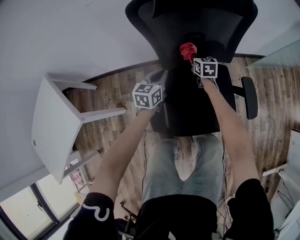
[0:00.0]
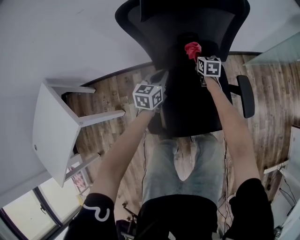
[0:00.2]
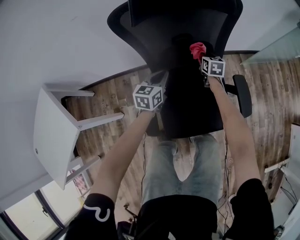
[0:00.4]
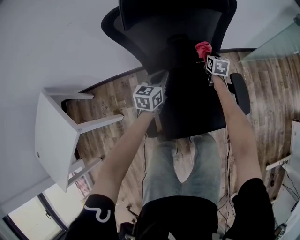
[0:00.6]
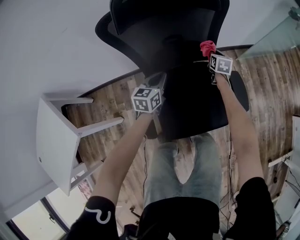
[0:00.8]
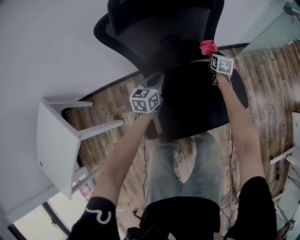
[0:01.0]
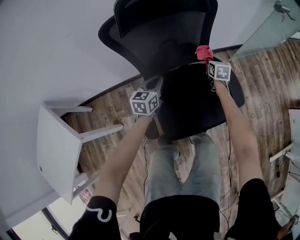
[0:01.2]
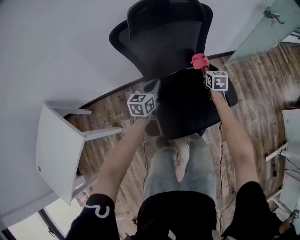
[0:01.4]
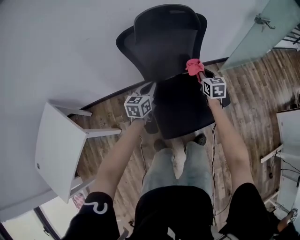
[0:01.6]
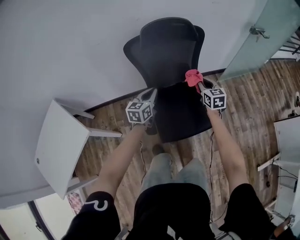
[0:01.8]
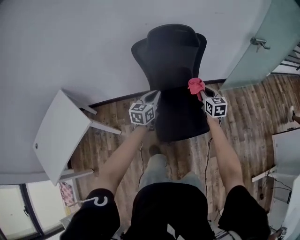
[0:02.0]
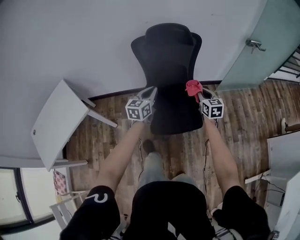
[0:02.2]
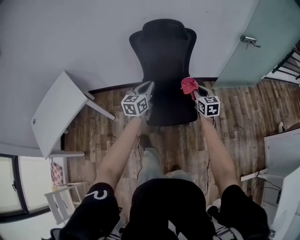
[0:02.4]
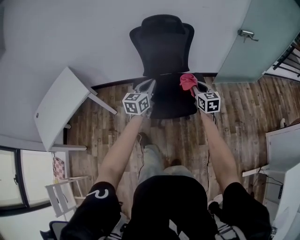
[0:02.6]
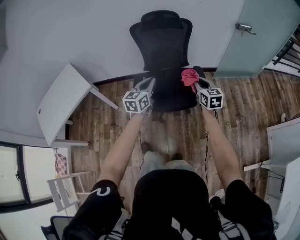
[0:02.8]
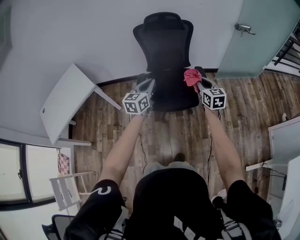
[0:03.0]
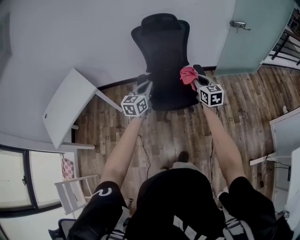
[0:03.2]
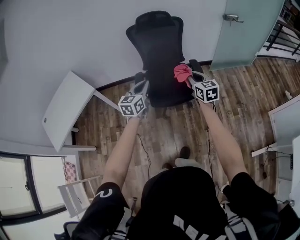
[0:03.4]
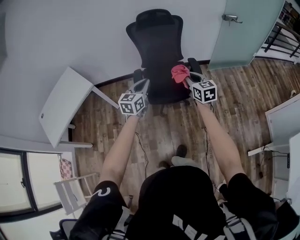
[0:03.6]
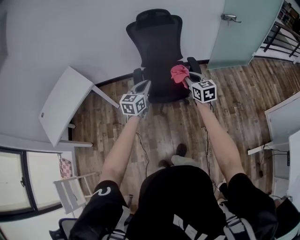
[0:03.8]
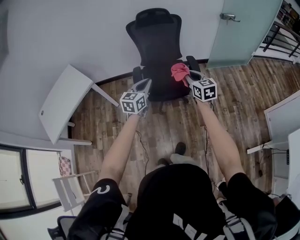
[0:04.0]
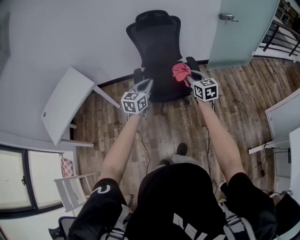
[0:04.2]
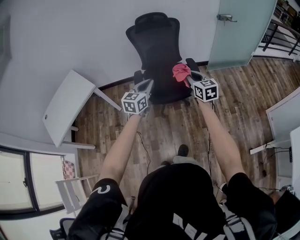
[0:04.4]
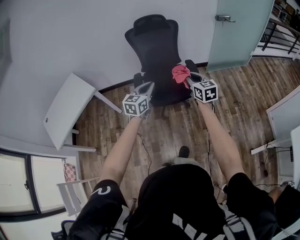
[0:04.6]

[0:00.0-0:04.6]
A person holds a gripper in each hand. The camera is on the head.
0:00.0 to 0:01.6: The right gripper goes approximately 30 cm upward, to the right and backward; the left gripper shifts approximately 15 cm upward and backward.
0:01.6 to 0:03.0: The grippers both shift backward and upward by approximately 40 cm. The right gripper changes its angle by about 20 degrees.
0:03.0 to 0:04.6: Both grippers travel together backward, about 10 cm.

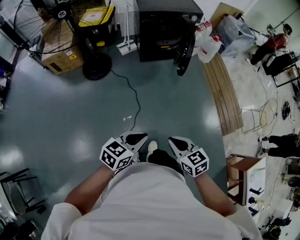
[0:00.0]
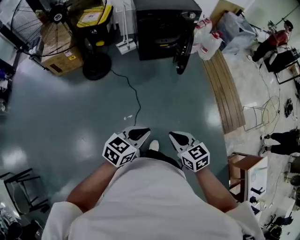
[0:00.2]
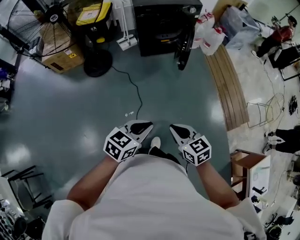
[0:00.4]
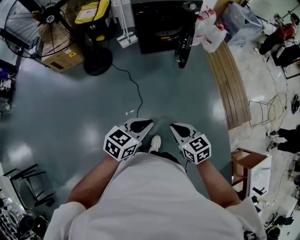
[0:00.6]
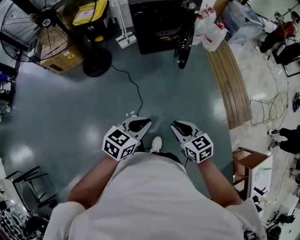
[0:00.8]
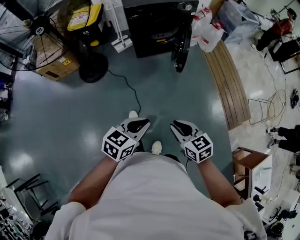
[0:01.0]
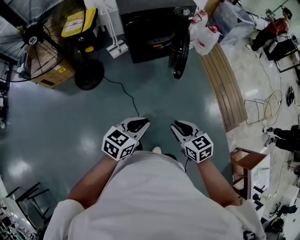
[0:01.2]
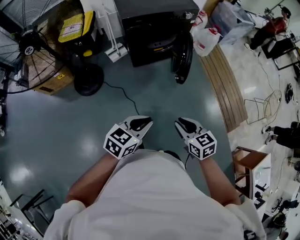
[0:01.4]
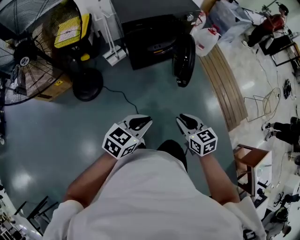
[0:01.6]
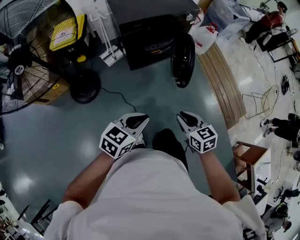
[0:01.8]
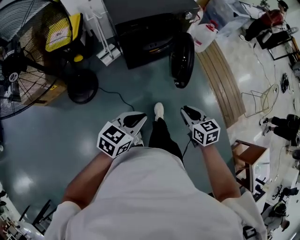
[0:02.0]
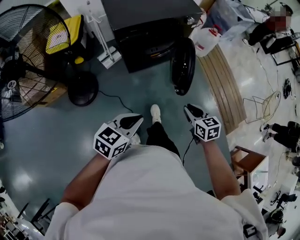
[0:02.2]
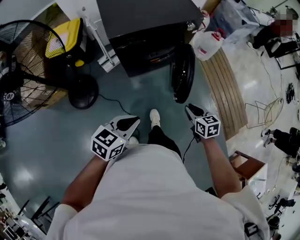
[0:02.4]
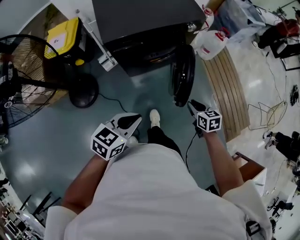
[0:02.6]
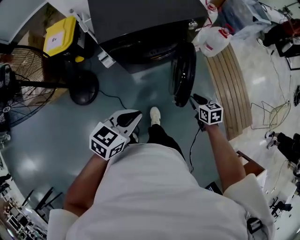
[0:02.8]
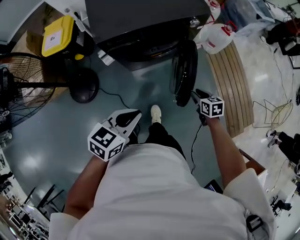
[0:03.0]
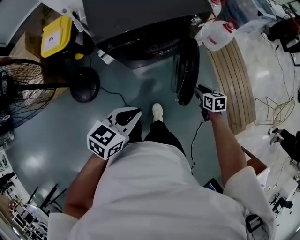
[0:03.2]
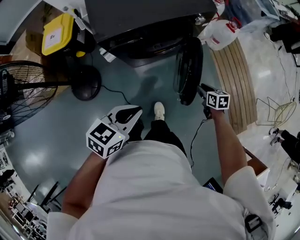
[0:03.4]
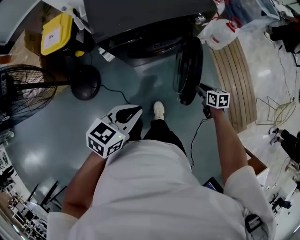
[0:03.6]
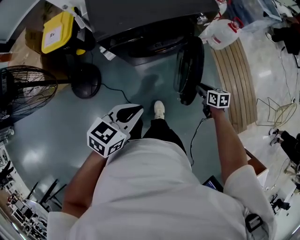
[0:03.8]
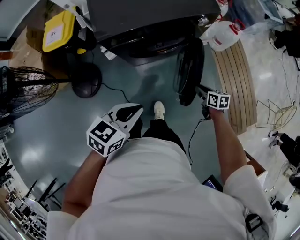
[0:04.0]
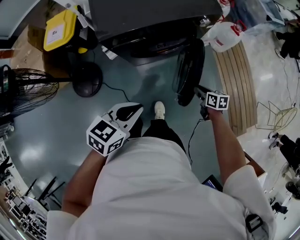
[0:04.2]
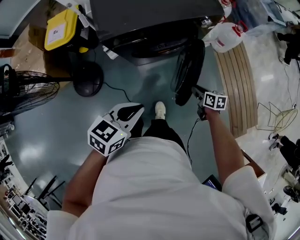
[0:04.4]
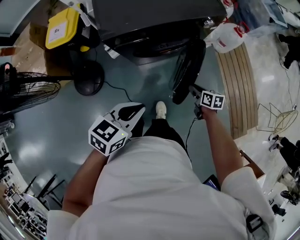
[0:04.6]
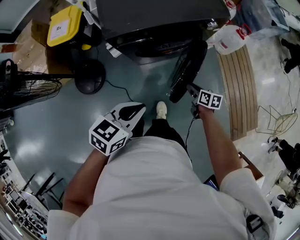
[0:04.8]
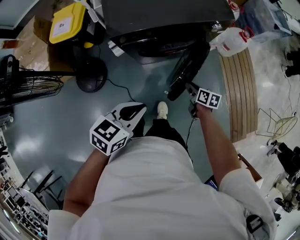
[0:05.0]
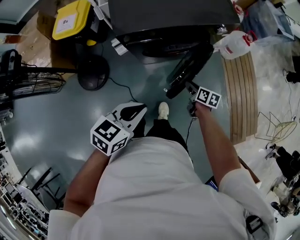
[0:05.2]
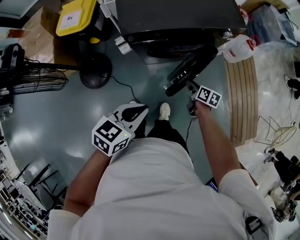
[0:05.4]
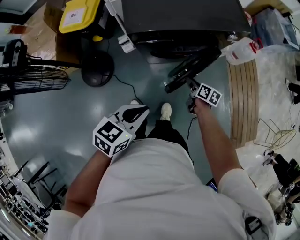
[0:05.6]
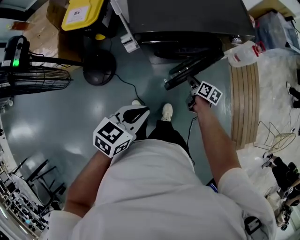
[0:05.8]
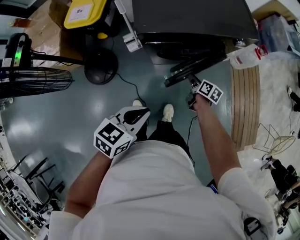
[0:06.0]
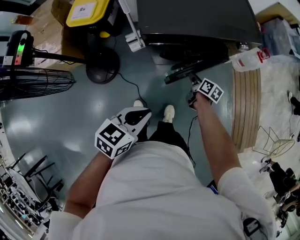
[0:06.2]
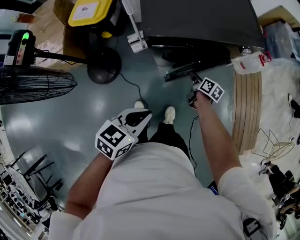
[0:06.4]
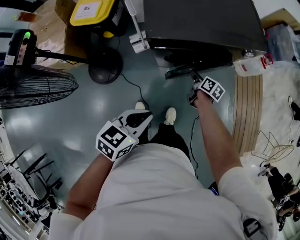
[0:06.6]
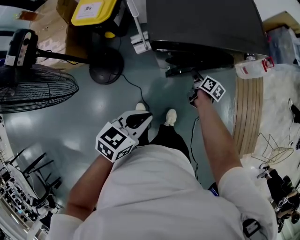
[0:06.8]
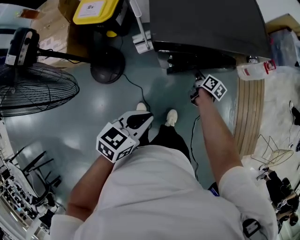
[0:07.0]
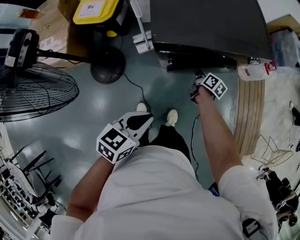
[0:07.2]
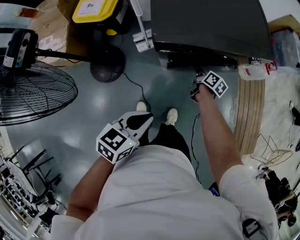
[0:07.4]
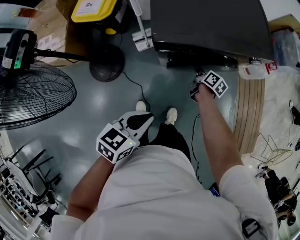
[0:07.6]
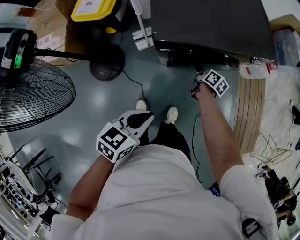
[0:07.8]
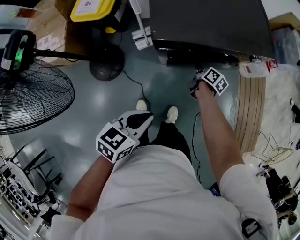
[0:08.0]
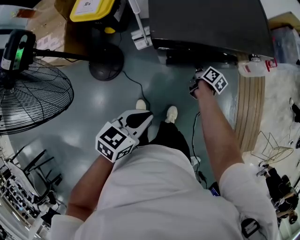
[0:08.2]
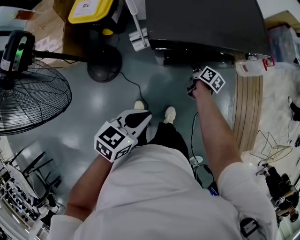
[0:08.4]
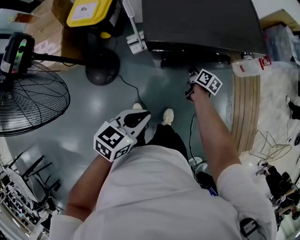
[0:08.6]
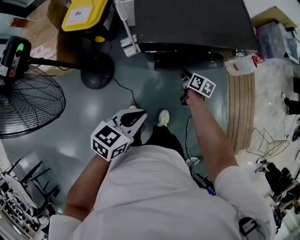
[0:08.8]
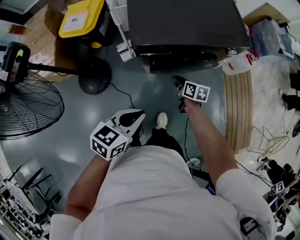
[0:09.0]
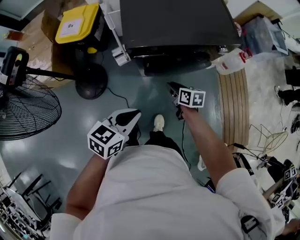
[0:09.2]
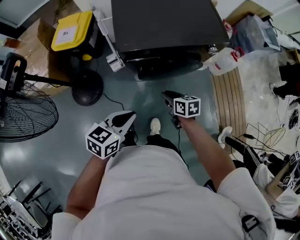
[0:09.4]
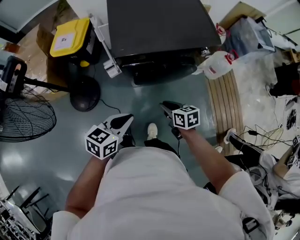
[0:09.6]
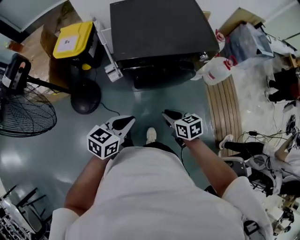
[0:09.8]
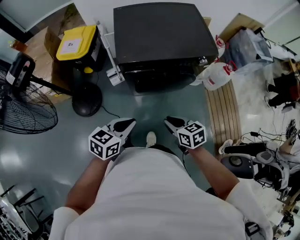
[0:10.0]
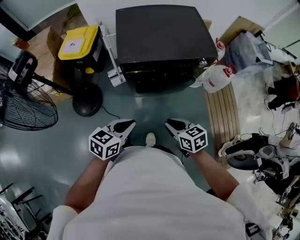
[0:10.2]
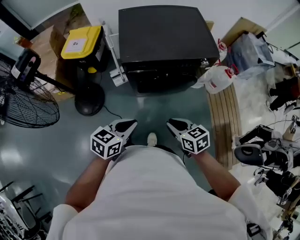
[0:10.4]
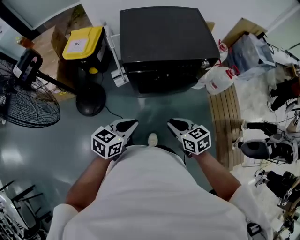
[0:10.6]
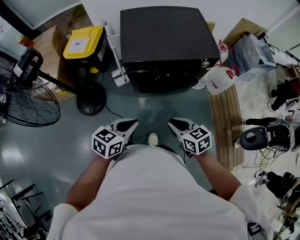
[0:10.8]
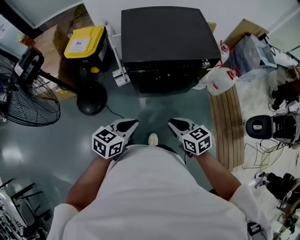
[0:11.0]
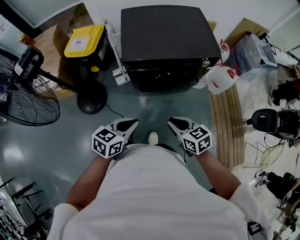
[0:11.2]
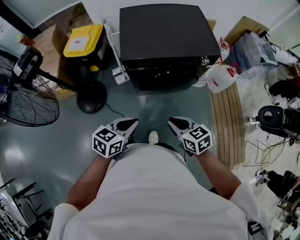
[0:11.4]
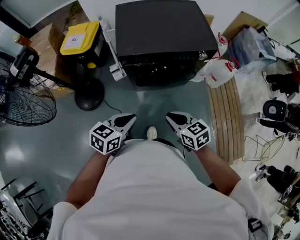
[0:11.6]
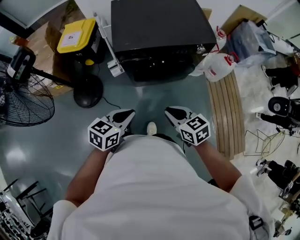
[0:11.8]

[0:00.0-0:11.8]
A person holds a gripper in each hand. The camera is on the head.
0:00.0 to 0:01.4: The grippers both shift forward by some 30 cm.
0:01.4 to 0:03.0: The left gripper goes about 35 cm forward. The right gripper heads forward and downward, covering roughly 50 cm, and changes its angle by some 20 degrees.
0:03.0 to 0:04.4: The right gripper moves approximately 5 cm.
0:04.4 to 0:06.0: The right gripper heads to the left and forward, covering about 20 cm. The left gripper heads to the left, covering roughly 10 cm.
0:06.0 to 0:07.4: The left gripper changes place by some 5 cm. The right gripper shifts roughly 15 cm forward and to the left.
0:07.4 to 0:08.8: The grippers make only small movements.
0:08.8 to 0:10.4: The right gripper shifts some 30 cm backward and upward, and turns by roughly 40 degrees, while the left gripper moves approximately 5 cm.
0:10.4 to 0:11.8: The grippers make only small movements.

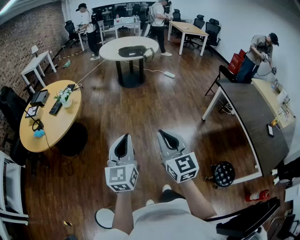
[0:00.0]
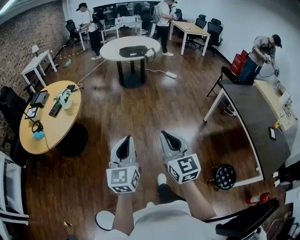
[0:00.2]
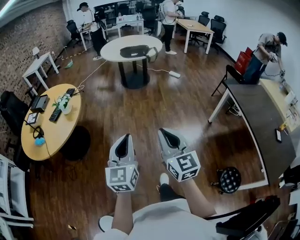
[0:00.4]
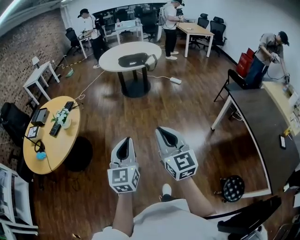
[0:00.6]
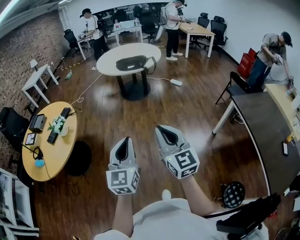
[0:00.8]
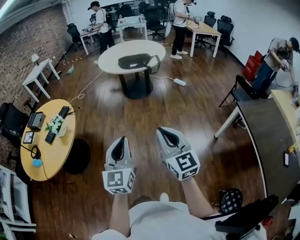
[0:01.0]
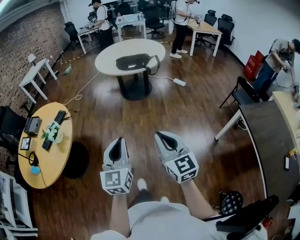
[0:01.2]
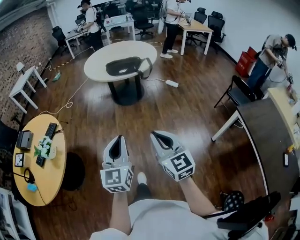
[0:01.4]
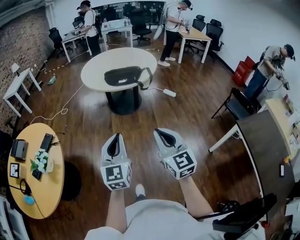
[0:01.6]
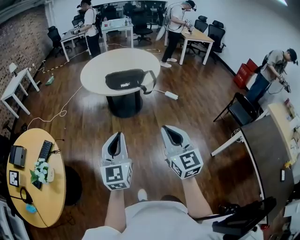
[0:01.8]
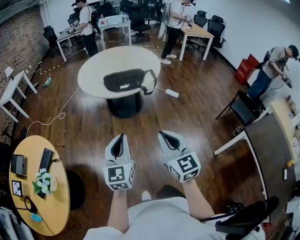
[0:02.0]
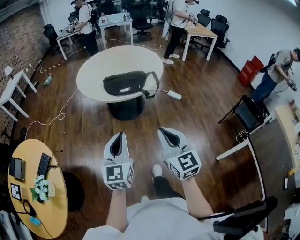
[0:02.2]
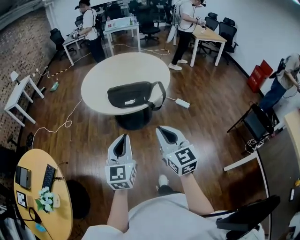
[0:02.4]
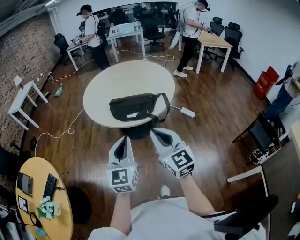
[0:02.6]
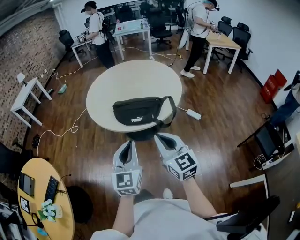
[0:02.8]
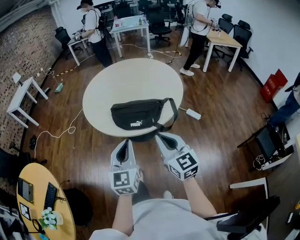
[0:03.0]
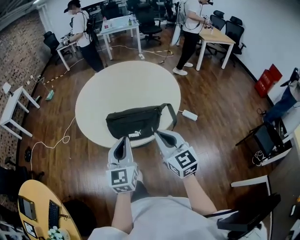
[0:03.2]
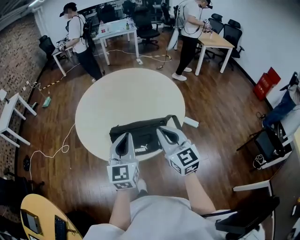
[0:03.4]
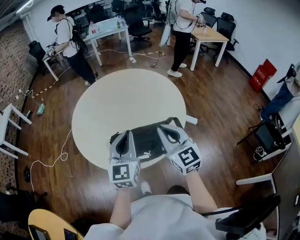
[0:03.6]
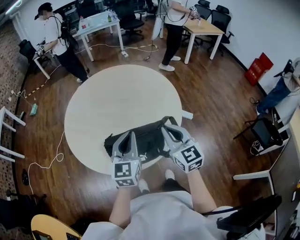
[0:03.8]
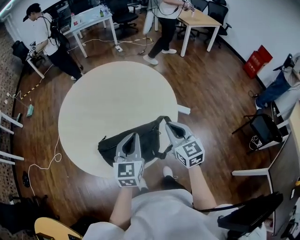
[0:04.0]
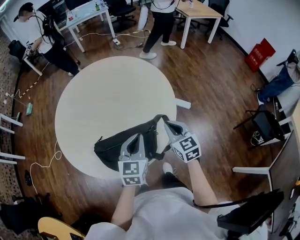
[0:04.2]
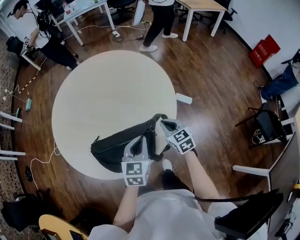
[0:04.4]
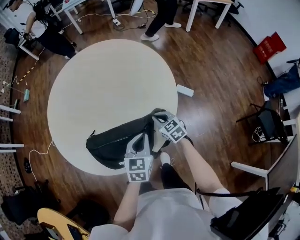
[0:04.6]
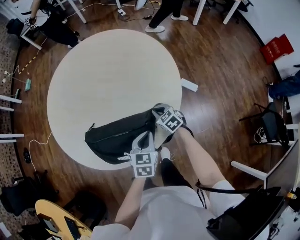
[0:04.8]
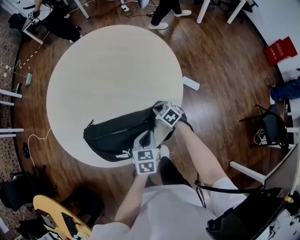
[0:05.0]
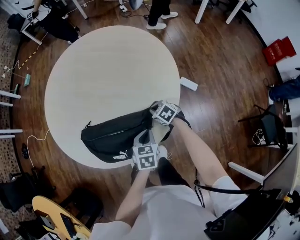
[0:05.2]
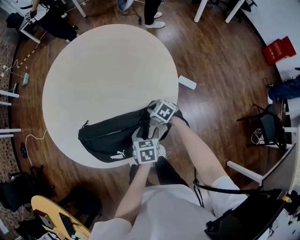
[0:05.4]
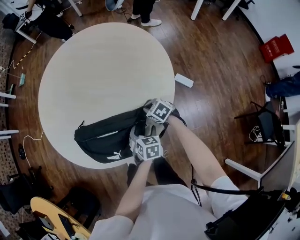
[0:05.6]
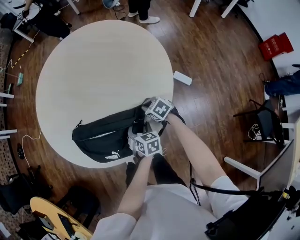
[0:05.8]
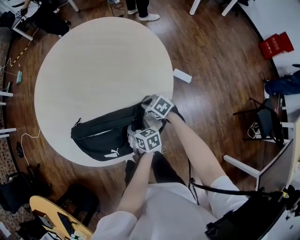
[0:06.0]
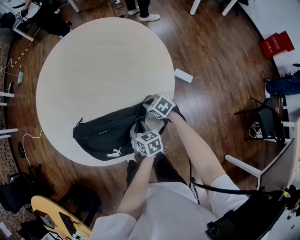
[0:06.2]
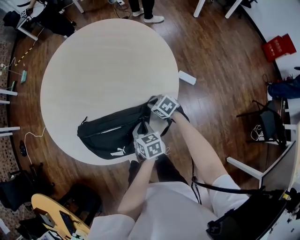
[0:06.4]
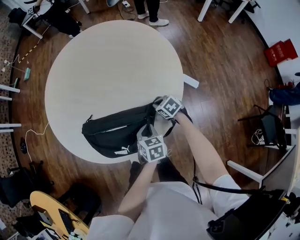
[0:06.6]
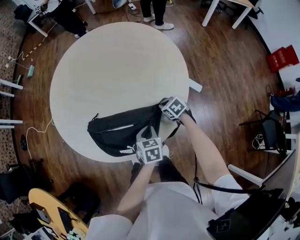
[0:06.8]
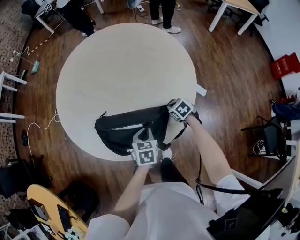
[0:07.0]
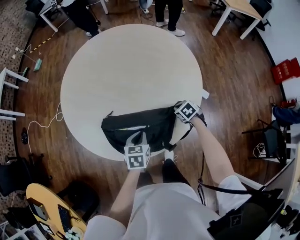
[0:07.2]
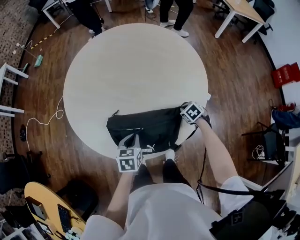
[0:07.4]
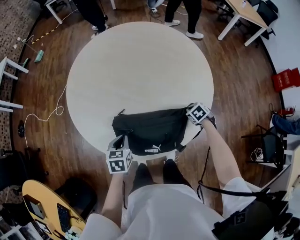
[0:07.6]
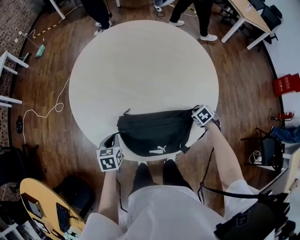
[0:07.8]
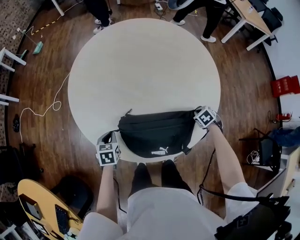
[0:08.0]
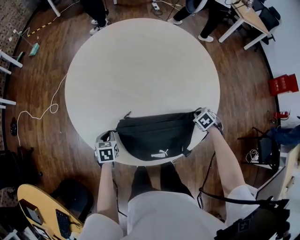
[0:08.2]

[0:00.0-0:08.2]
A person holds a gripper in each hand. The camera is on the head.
0:00.0 to 0:01.6: Both grippers are carried forward, some 60 cm.
0:01.6 to 0:03.2: The two grippers travel together, forward, approximately 60 cm.
0:03.2 to 0:05.0: The left gripper travels downward, forward and to the right by some 40 cm, and tilts its fingers about 40 degrees downward. The right gripper moves downward and forward, roughly 50 cm, and tips its fingers downward by approximately 50 degrees.
0:05.0 to 0:06.6: The left gripper opens, then closes again.
0:06.6 to 0:08.2: The right gripper rotates roughly 30 degrees. The left gripper ends up roughly 40 cm from where it was.
